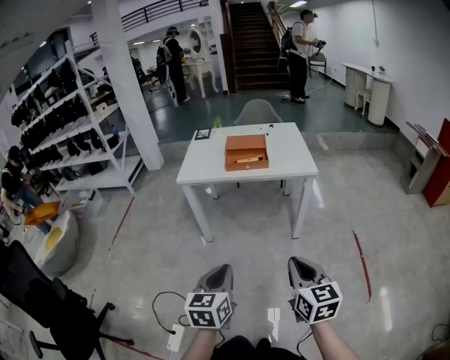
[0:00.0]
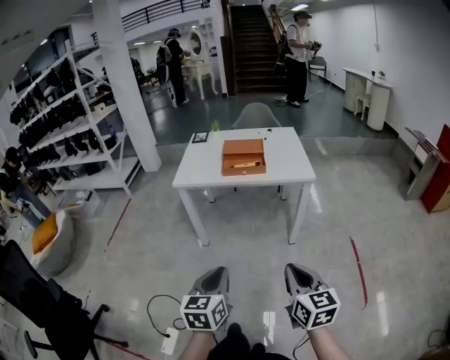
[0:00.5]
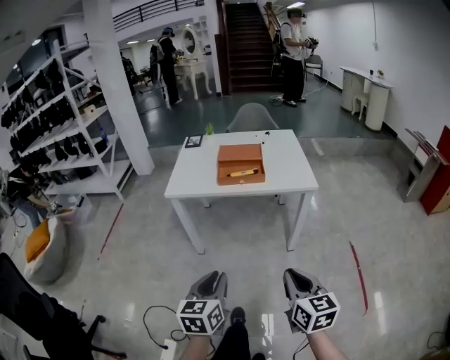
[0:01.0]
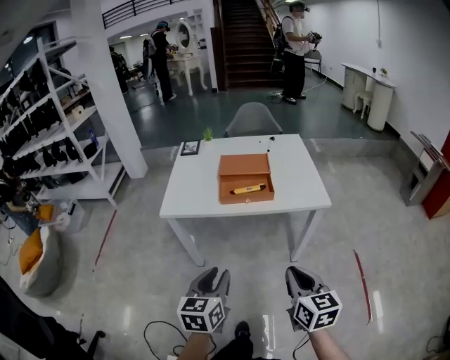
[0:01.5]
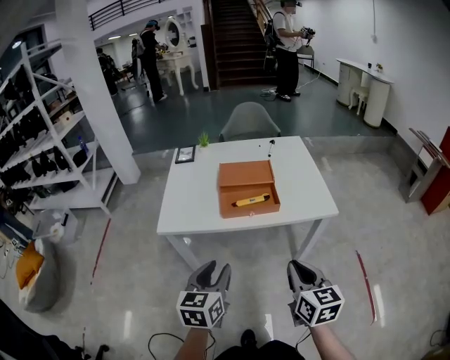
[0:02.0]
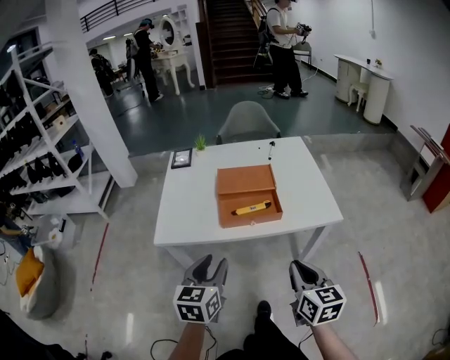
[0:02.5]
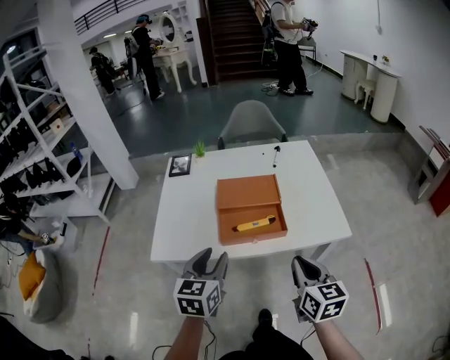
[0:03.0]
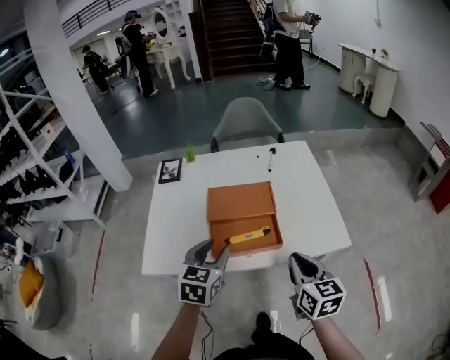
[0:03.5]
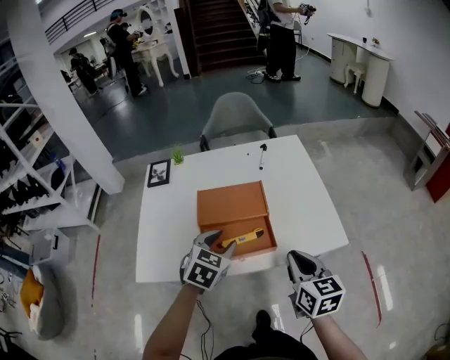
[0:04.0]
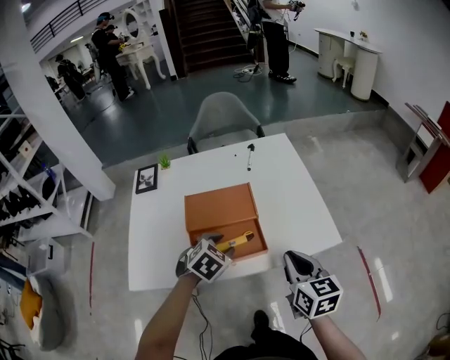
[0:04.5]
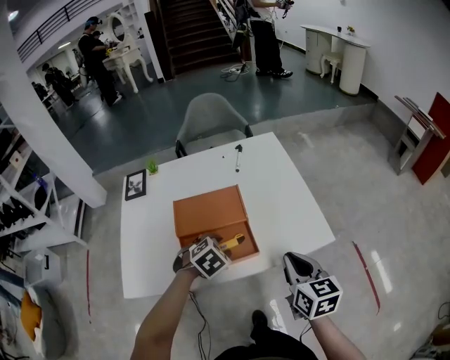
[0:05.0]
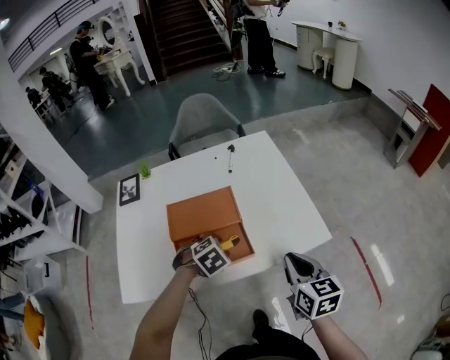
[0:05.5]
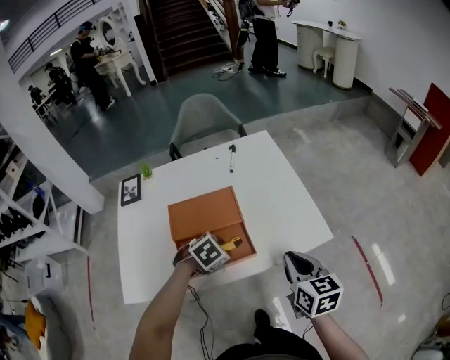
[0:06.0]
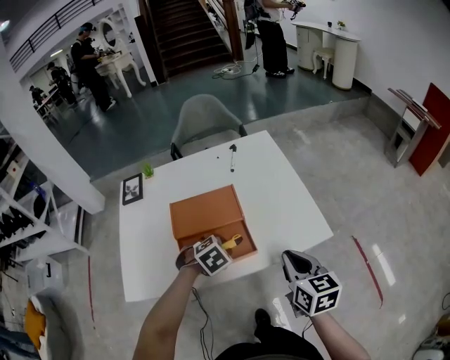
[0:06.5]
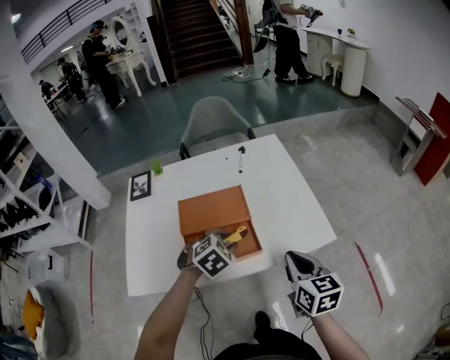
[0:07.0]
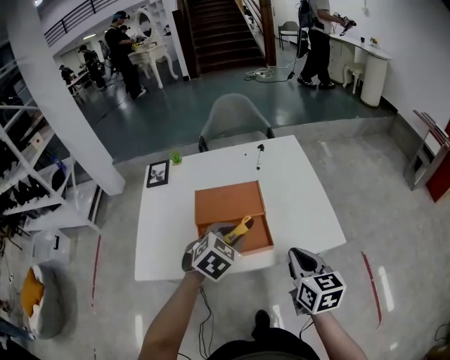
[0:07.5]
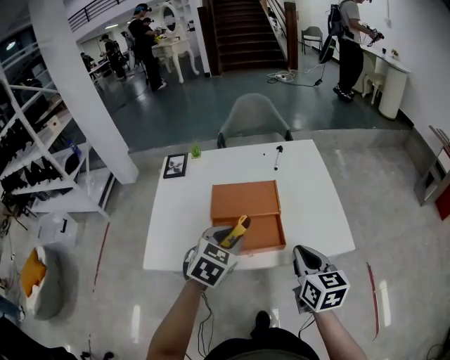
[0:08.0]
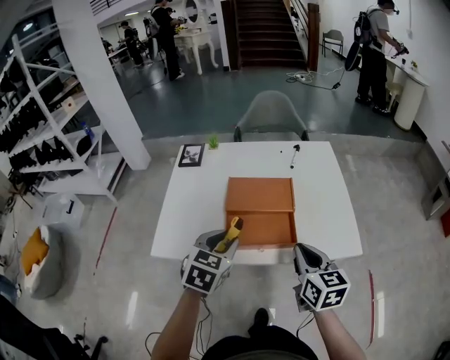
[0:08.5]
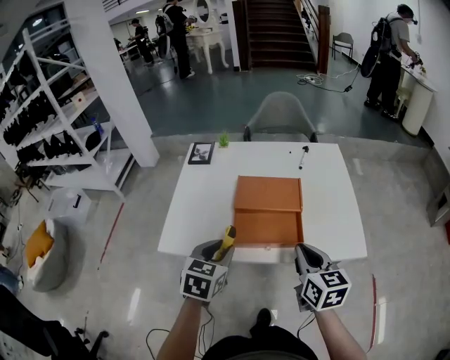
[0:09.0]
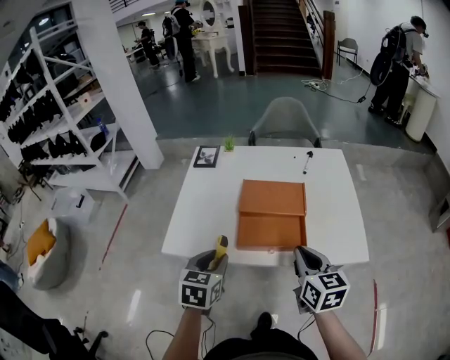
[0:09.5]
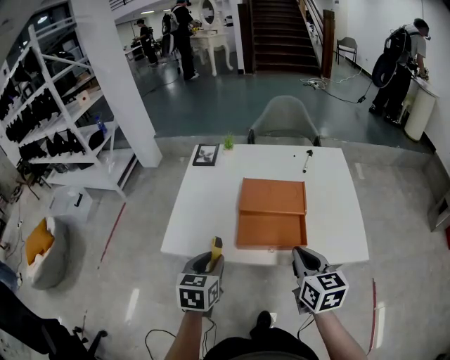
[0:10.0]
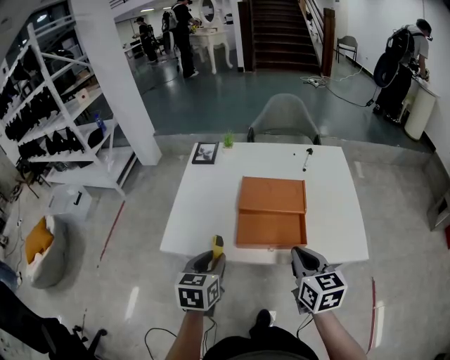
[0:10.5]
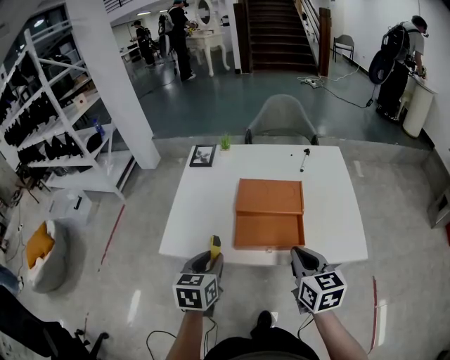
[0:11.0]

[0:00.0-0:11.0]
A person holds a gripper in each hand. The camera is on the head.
0:00.0 to 0:02.0: The two grippers go roughly 35 cm forward. The left gripper opens.
0:02.0 to 0:03.5: The two grippers go roughly 25 cm forward.
0:03.5 to 0:05.5: The right gripper goes about 5 cm to the right, while the left gripper goes approximately 20 cm downward, to the right and forward, and tilts its fingers about 40 degrees downward.
0:05.5 to 0:07.5: The left gripper travels upward by roughly 10 cm, and turns by roughly 30 degrees.
0:07.5 to 0:09.0: The right gripper goes approximately 10 cm to the left; the left gripper is displaced to the left and backward by roughly 15 cm, and swivels roughly 40 degrees.
0:09.0 to 0:11.0: The grippers move only a little.

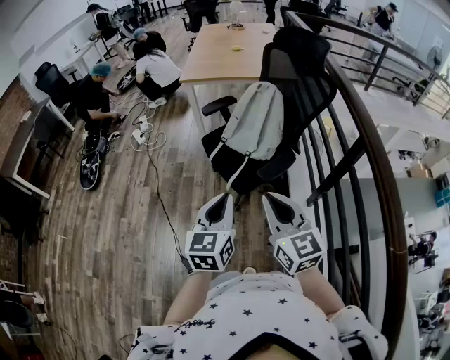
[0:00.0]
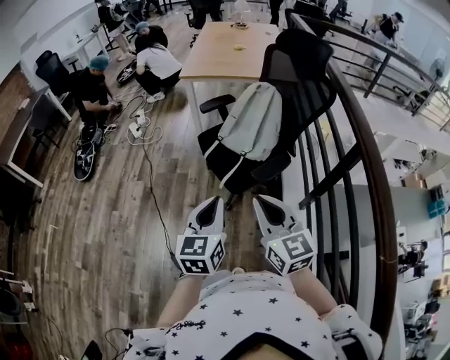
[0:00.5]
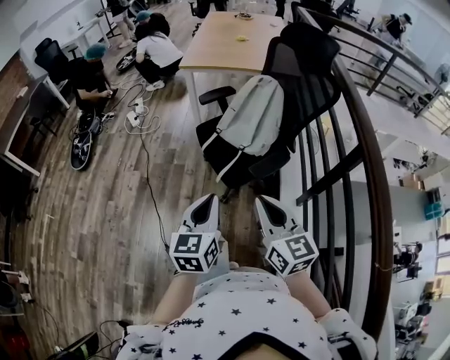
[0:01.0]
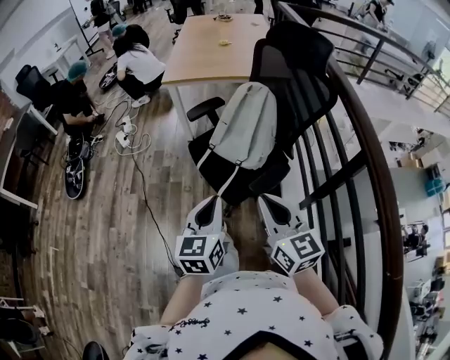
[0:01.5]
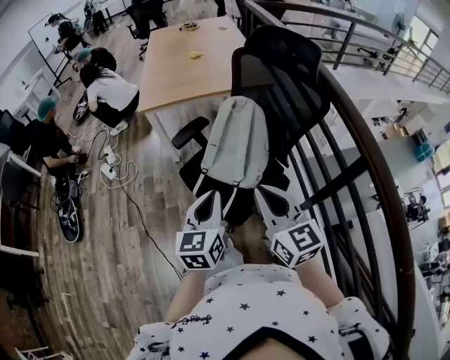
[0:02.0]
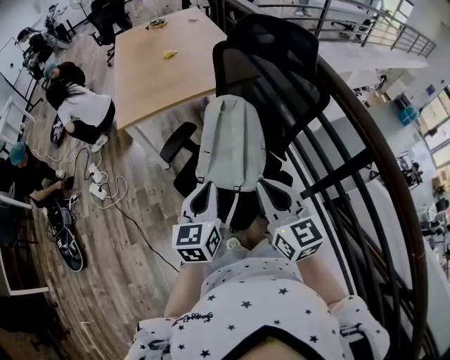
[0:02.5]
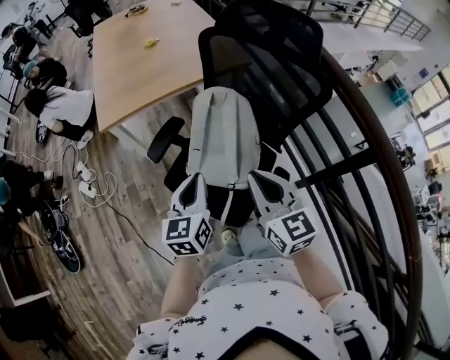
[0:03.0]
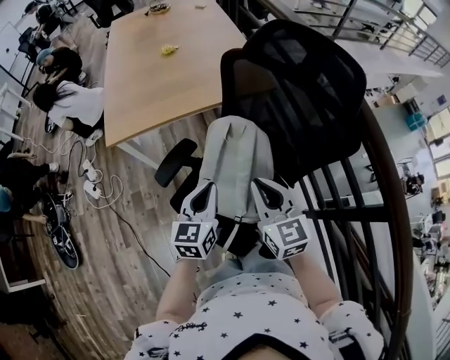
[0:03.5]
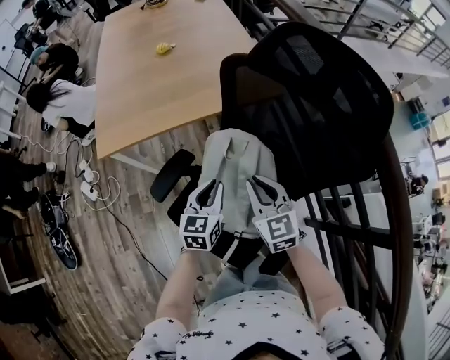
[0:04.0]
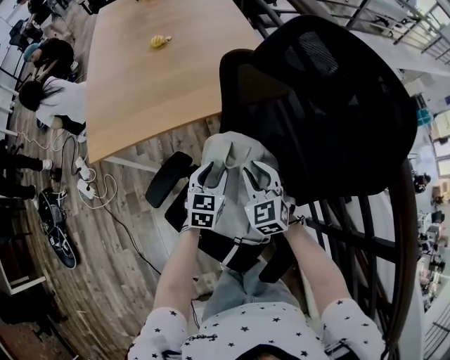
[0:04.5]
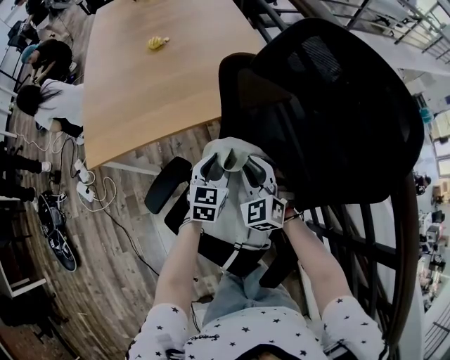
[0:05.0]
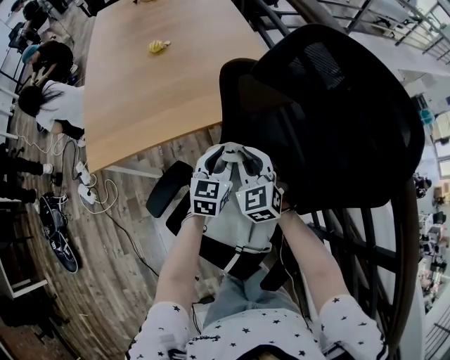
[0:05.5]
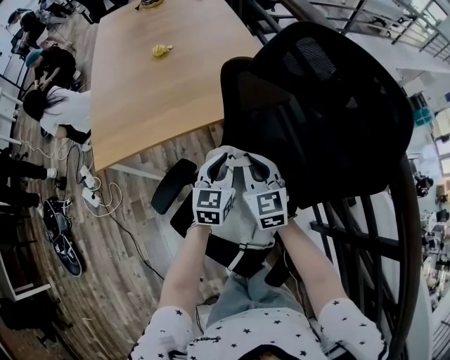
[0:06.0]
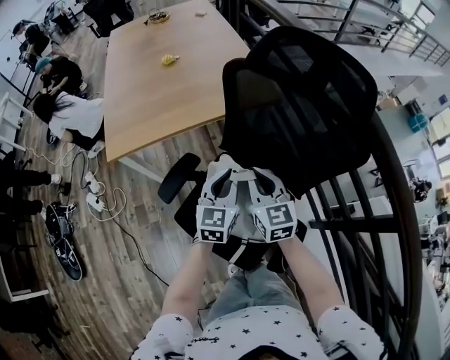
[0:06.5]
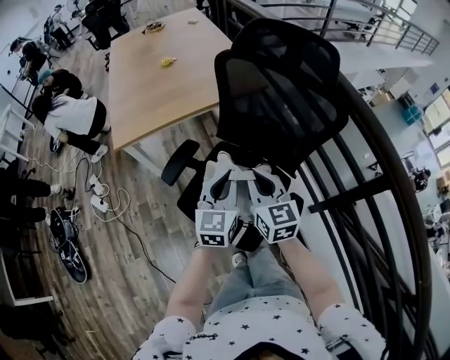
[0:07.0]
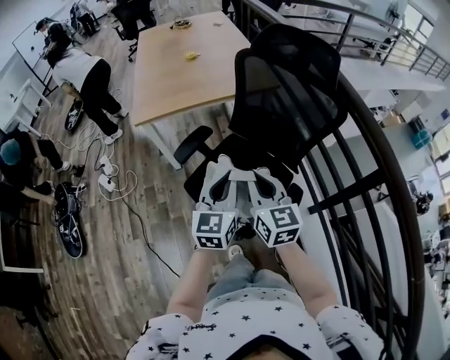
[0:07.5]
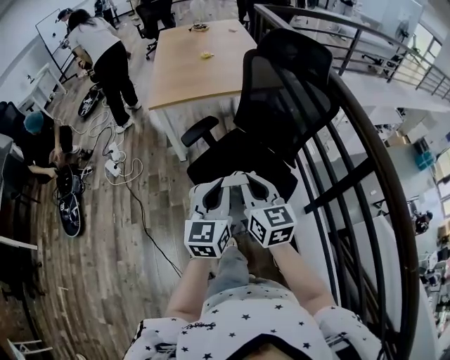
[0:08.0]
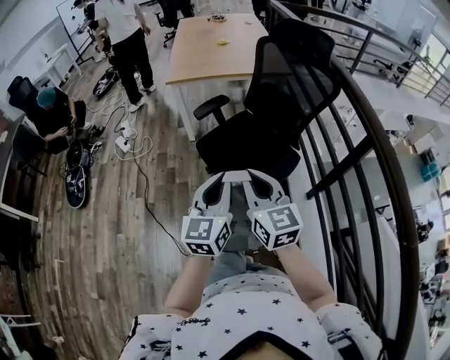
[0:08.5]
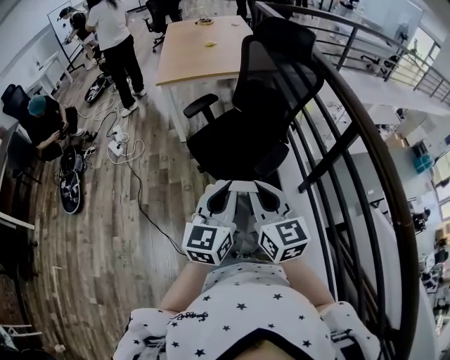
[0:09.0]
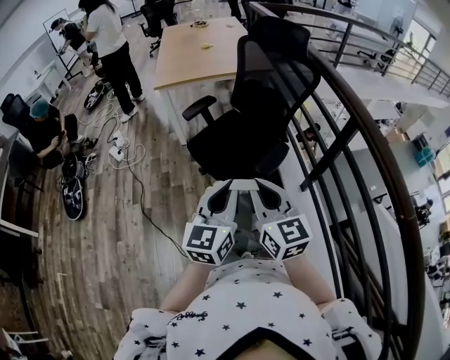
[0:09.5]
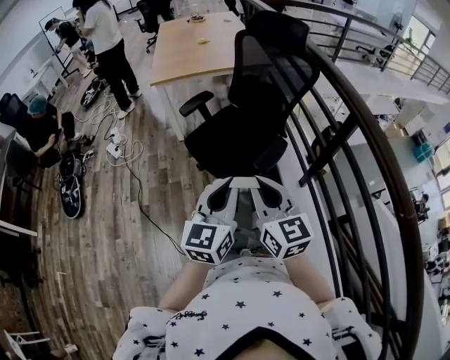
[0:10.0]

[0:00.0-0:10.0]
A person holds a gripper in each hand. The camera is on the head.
0:00.0 to 0:02.0: The grippers both shift forward by approximately 30 cm.
0:02.0 to 0:04.0: The two grippers travel together, forward, about 40 cm. The two grippers go about 20 cm downward.
0:04.0 to 0:06.0: Both grippers move forward, some 10 cm. The left gripper opens and closes again.
0:06.0 to 0:08.0: The two grippers travel together, backward, approximately 50 cm.
0:08.0 to 0:10.0: The two grippers go roughly 25 cm backward.

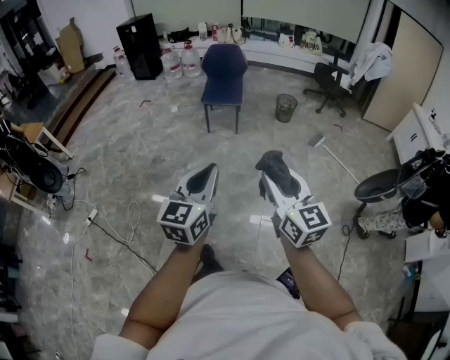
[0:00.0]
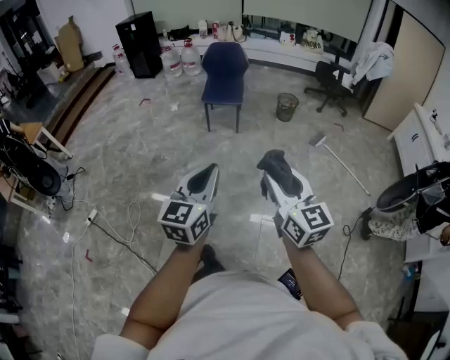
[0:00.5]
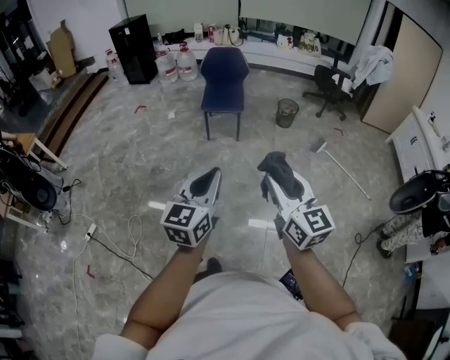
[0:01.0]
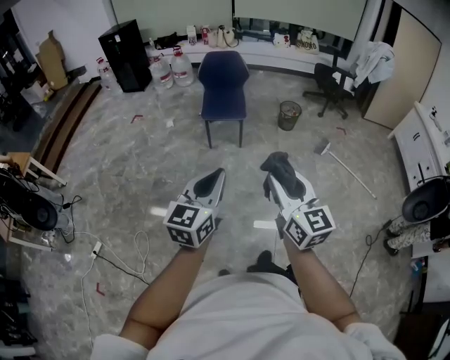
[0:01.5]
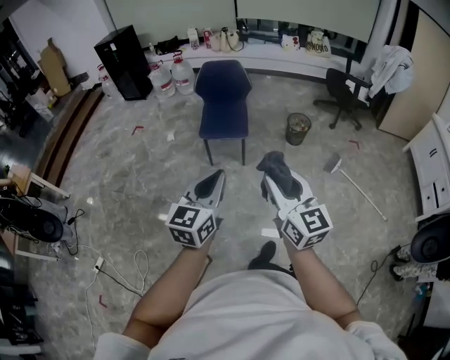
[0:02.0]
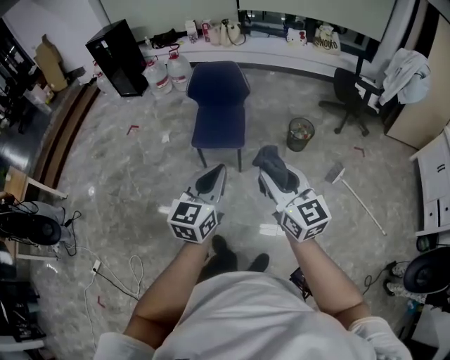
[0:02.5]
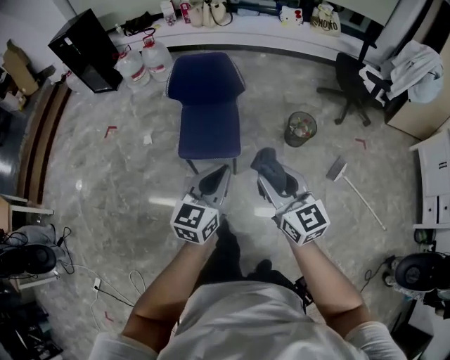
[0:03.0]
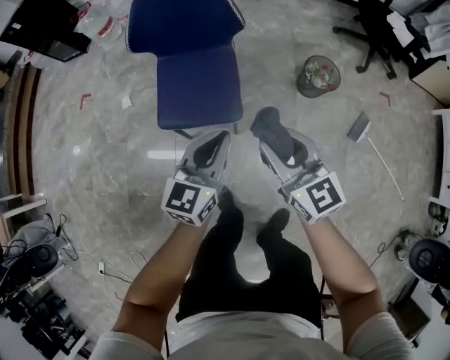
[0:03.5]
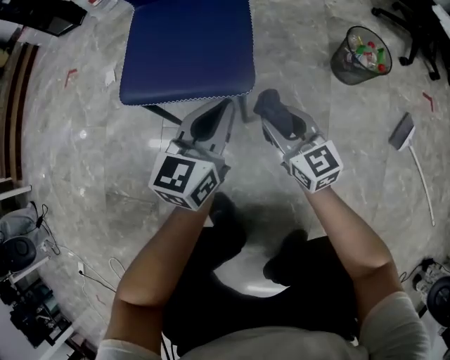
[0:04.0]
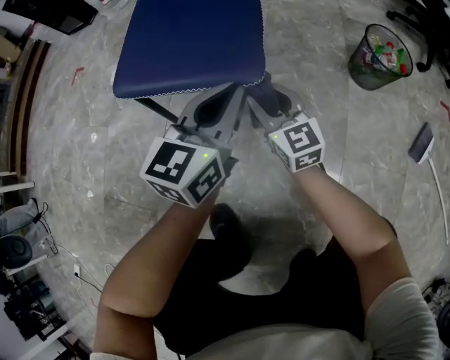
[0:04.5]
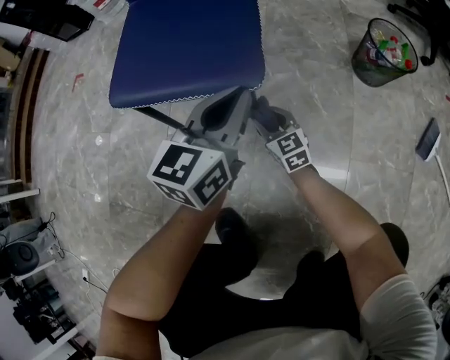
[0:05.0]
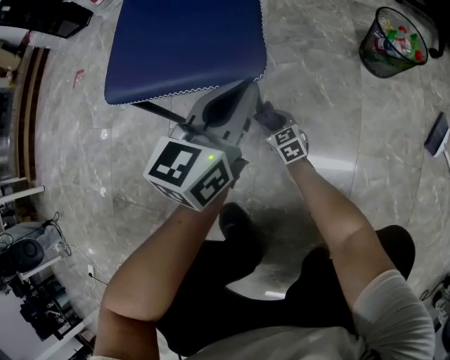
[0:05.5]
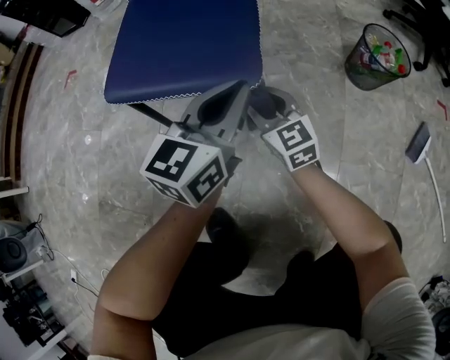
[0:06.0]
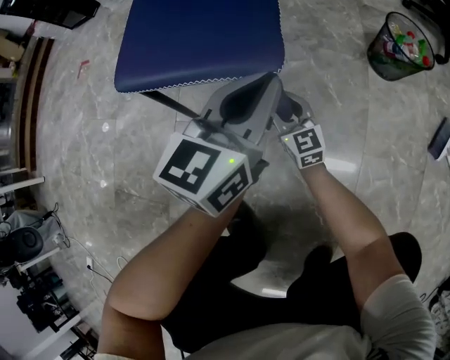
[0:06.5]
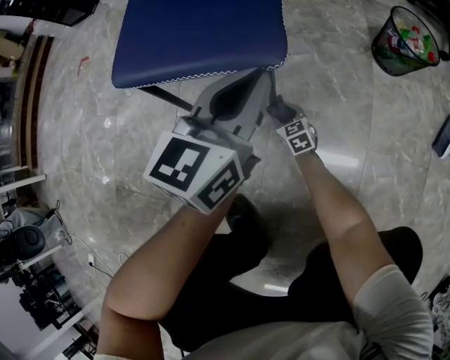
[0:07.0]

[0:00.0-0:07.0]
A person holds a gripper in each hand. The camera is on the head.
0:00.0 to 0:02.0: The two grippers travel together, forward, approximately 50 cm.
0:02.0 to 0:03.5: The two grippers travel together, forward, about 60 cm. Both grippers travel together downward, some 40 cm.
0:03.5 to 0:05.0: The right gripper shifts about 70 cm downward. Meanwhile the left gripper heads downward, covering about 40 cm.
0:05.0 to 0:07.0: The right gripper moves up and down over some 30 cm, changing direction 2 times.
